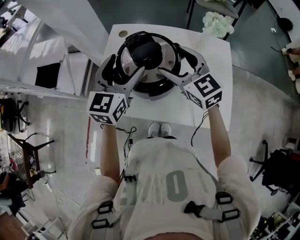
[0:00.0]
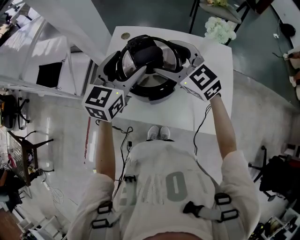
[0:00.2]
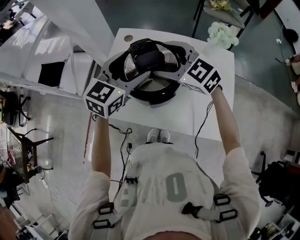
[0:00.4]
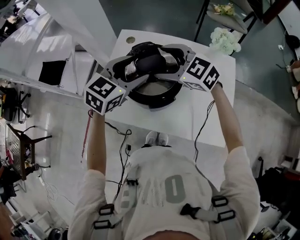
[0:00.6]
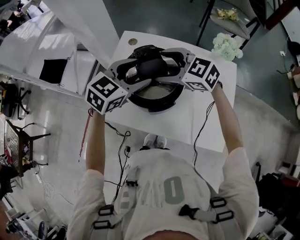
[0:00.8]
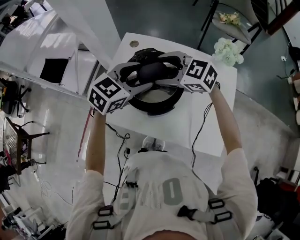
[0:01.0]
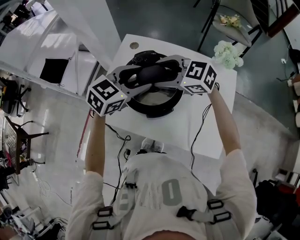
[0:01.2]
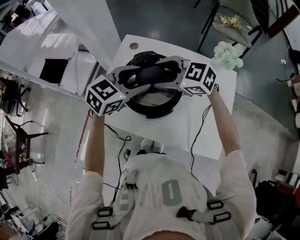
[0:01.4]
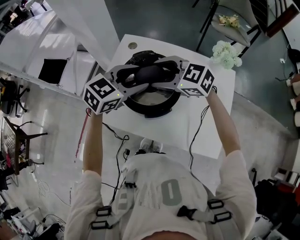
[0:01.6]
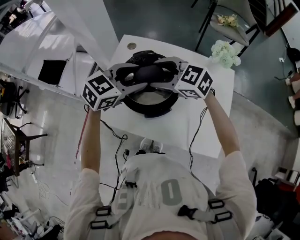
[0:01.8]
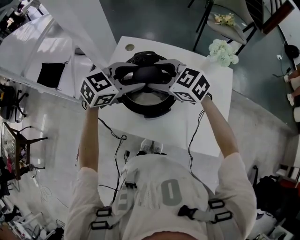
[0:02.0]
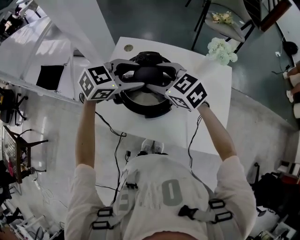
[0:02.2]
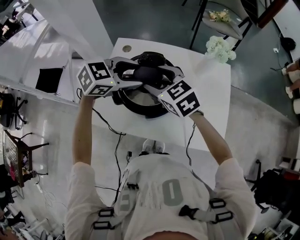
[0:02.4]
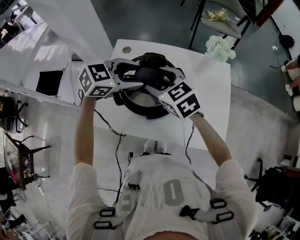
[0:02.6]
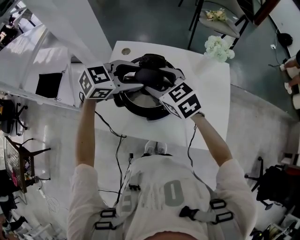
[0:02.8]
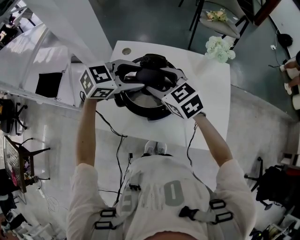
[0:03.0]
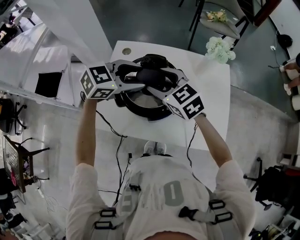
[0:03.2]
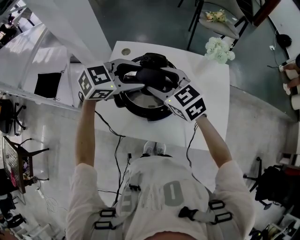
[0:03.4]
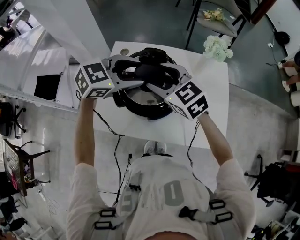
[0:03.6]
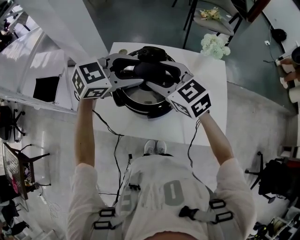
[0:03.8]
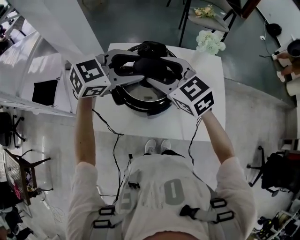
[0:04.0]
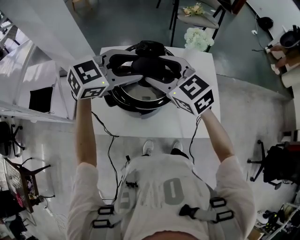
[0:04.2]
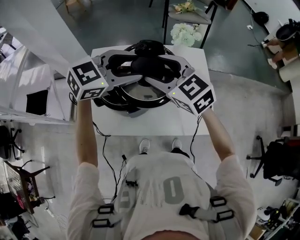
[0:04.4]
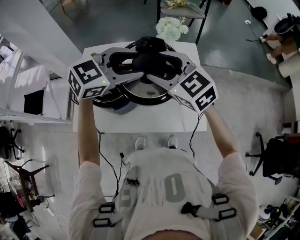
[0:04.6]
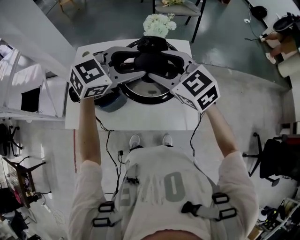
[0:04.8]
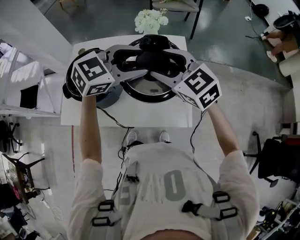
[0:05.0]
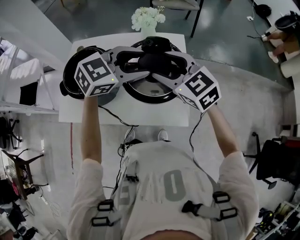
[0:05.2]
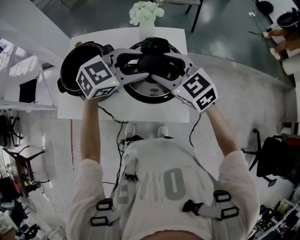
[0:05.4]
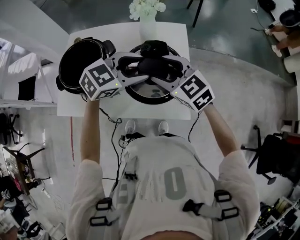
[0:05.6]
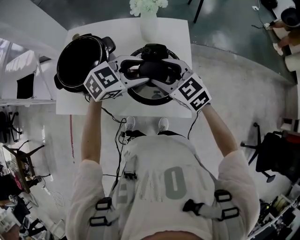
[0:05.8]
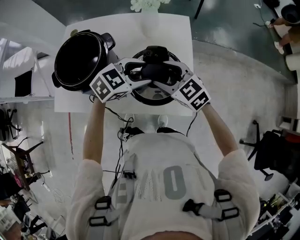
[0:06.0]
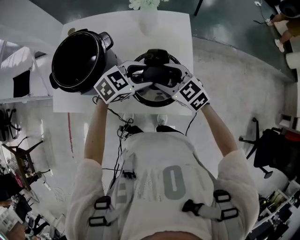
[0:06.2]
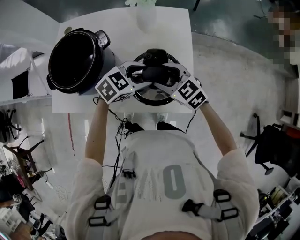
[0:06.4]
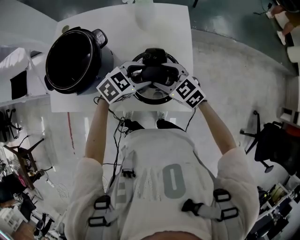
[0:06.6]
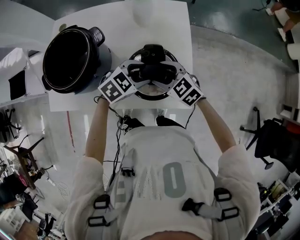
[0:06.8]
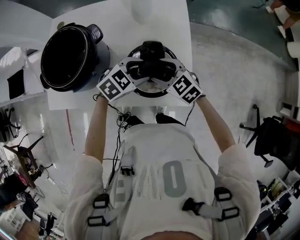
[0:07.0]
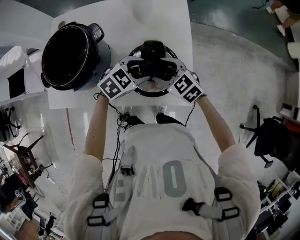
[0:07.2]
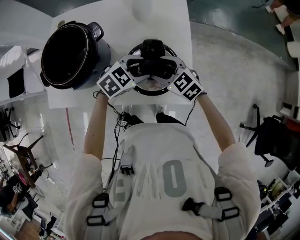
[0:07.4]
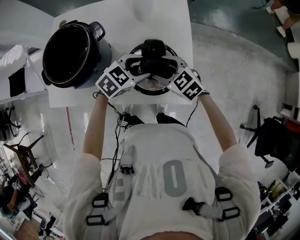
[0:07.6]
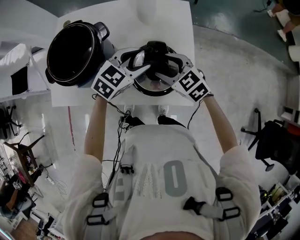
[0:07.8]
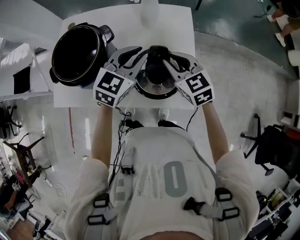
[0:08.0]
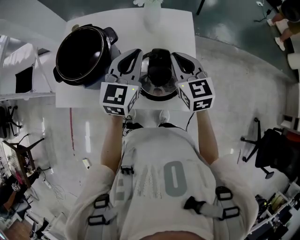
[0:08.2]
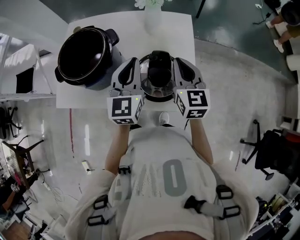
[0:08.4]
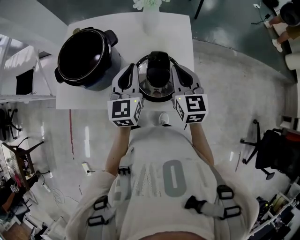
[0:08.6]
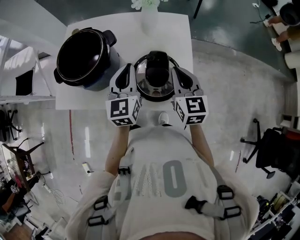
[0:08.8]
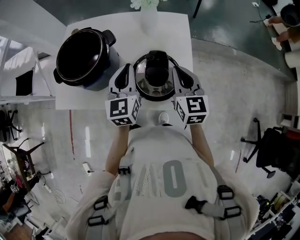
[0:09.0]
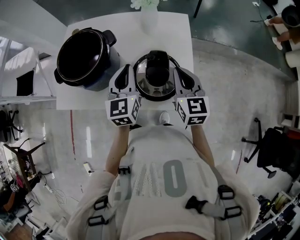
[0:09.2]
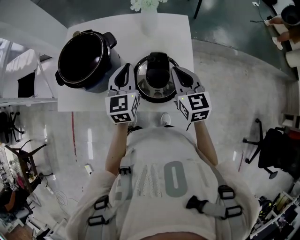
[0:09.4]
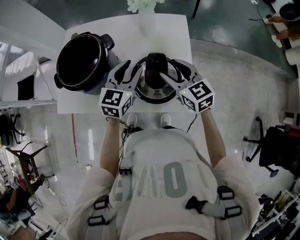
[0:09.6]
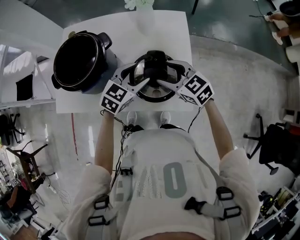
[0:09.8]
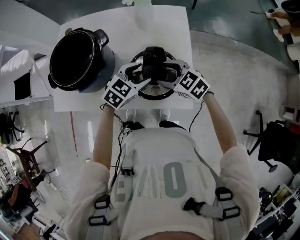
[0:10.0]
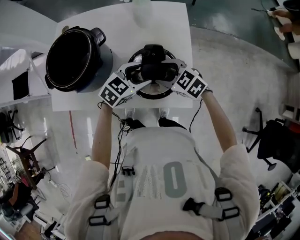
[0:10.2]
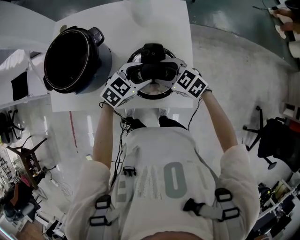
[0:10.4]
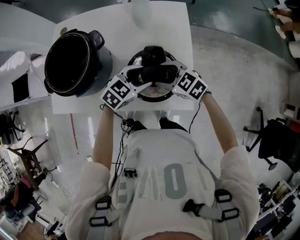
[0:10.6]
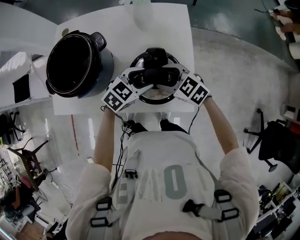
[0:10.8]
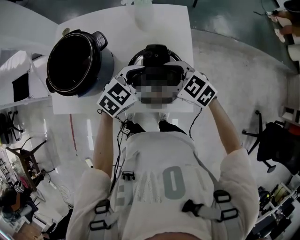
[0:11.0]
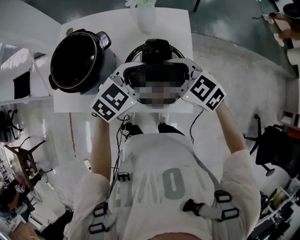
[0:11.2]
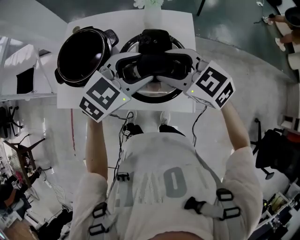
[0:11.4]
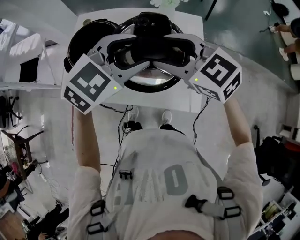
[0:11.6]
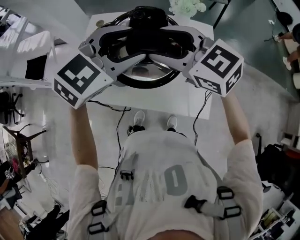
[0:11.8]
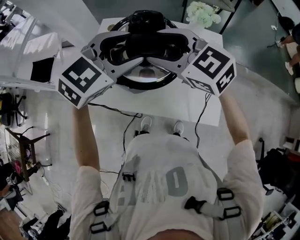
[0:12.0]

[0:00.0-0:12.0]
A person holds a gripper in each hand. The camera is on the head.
0:00.0 to 0:01.6: The left gripper moves some 5 cm, changes its angle by approximately 30 degrees, and closes up; the right gripper moves some 5 cm, and rotates some 40 degrees.
0:01.6 to 0:03.0: The left gripper swivels roughly 20 degrees. Meanwhile the right gripper swivels approximately 30 degrees.
0:03.0 to 0:04.4: Both grippers move upward and to the right, some 10 cm.
0:04.4 to 0:06.0: Both grippers move to the right and downward, approximately 30 cm.
0:06.0 to 0:07.6: The grippers both shift downward by approximately 10 cm.
0:07.6 to 0:09.0: The left gripper shifts approximately 15 cm upward and to the left, tilts its fingers about 30 degrees upward, and closes its fingers; the right gripper heads upward and to the right, covering roughly 15 cm, turns by roughly 40 degrees, and closes.
0:09.0 to 0:10.4: Both grippers travel together downward, roughly 15 cm. The right gripper turns by some 50 degrees, and opens, while the left gripper changes its angle by about 60 degrees, and opens up.
0:10.4 to 0:12.0: The two grippers go approximately 30 cm upward. The right gripper rotates about 20 degrees. The left gripper turns by some 20 degrees.

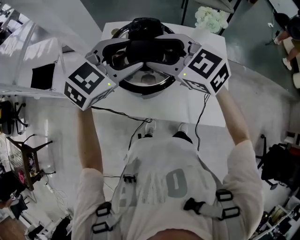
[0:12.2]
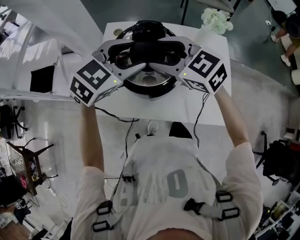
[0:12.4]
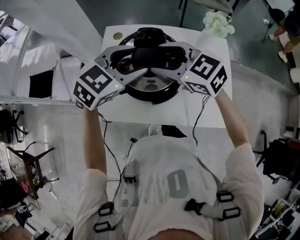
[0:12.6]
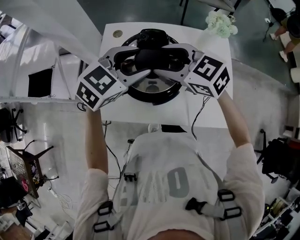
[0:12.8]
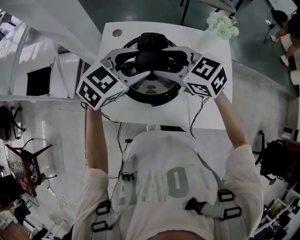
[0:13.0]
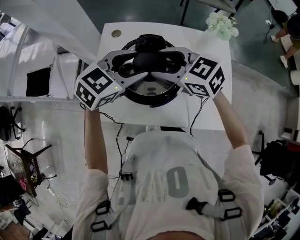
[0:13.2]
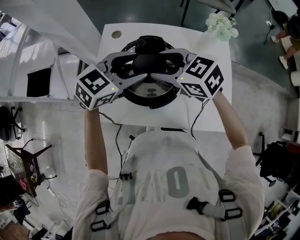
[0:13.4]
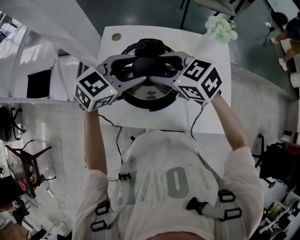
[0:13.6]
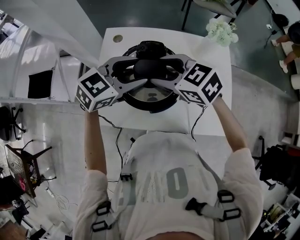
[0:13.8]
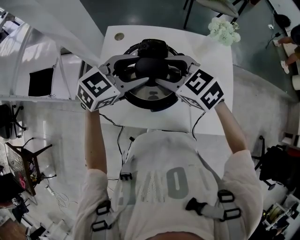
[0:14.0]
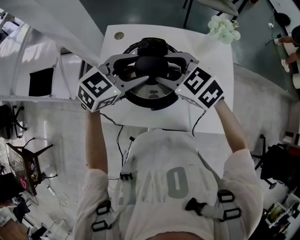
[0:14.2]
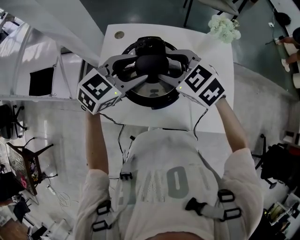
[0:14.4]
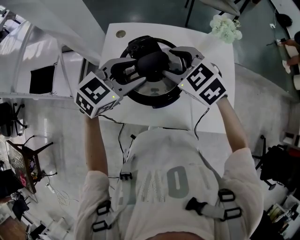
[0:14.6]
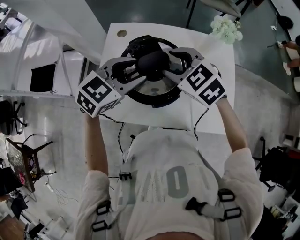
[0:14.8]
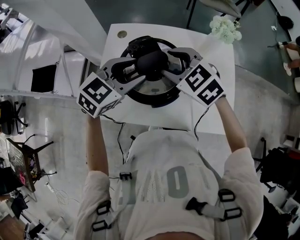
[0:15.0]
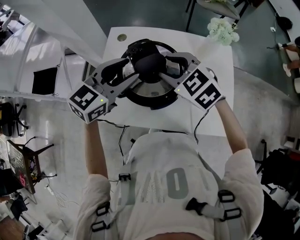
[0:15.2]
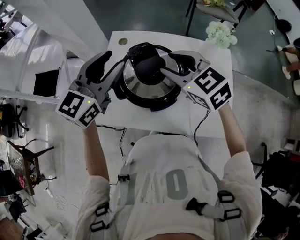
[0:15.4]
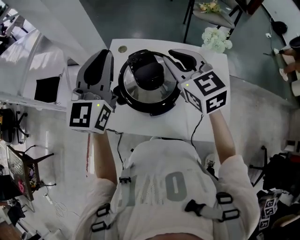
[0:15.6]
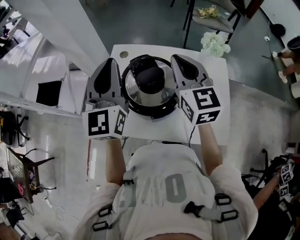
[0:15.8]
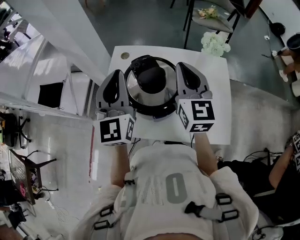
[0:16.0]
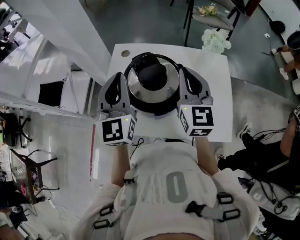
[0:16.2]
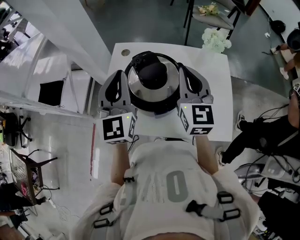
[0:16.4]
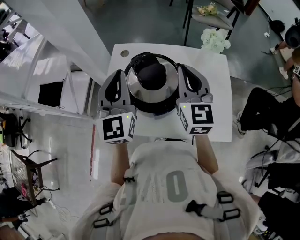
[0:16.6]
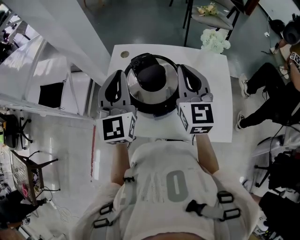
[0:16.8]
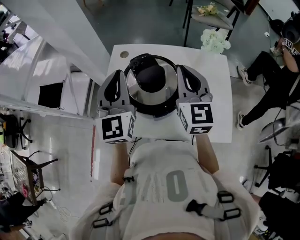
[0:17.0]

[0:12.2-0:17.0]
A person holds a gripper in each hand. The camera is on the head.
0:12.2 to 0:13.8: The left gripper moves to the left, downward and forward, about 15 cm. Meanwhile the right gripper is displaced downward, to the left and forward by about 10 cm.
0:13.8 to 0:15.4: The left gripper travels upward and to the left by roughly 15 cm, and swivels approximately 40 degrees. Meanwhile the right gripper changes place by roughly 5 cm.
0:15.4 to 0:17.0: The left gripper changes its angle by approximately 30 degrees, and closes its fingers; the right gripper travels to the right by about 5 cm, rotates roughly 40 degrees, and closes its fingers.

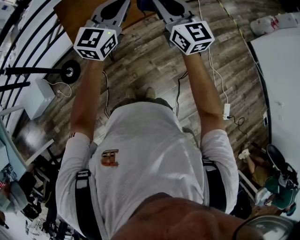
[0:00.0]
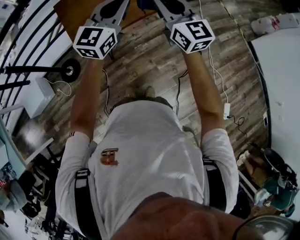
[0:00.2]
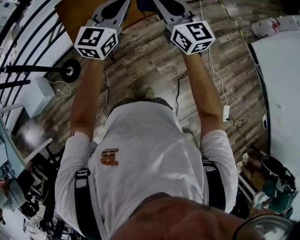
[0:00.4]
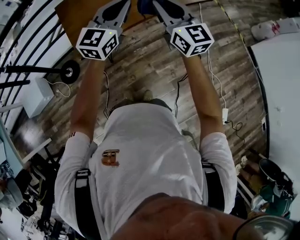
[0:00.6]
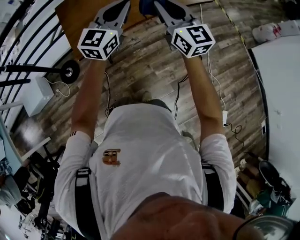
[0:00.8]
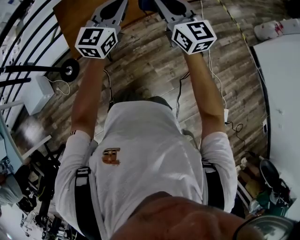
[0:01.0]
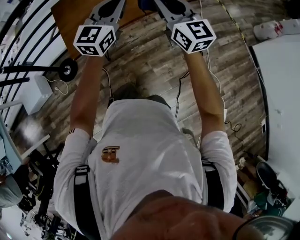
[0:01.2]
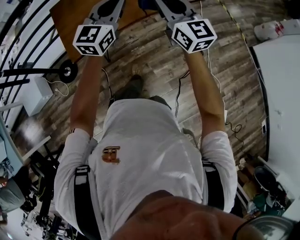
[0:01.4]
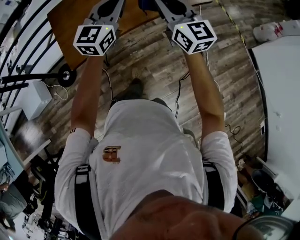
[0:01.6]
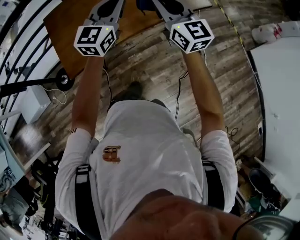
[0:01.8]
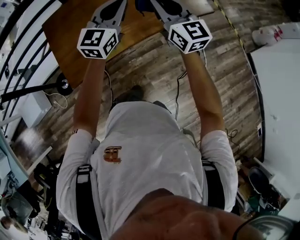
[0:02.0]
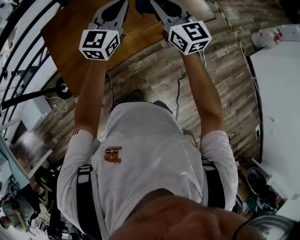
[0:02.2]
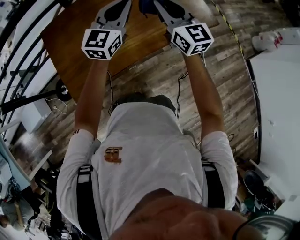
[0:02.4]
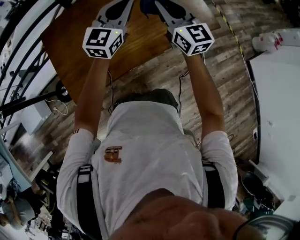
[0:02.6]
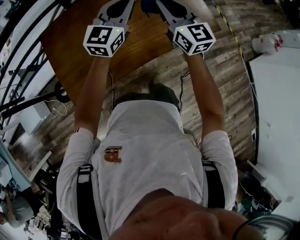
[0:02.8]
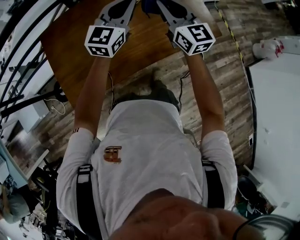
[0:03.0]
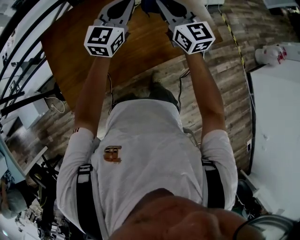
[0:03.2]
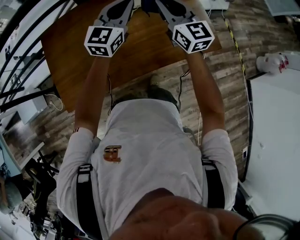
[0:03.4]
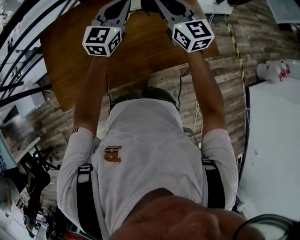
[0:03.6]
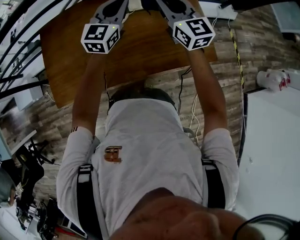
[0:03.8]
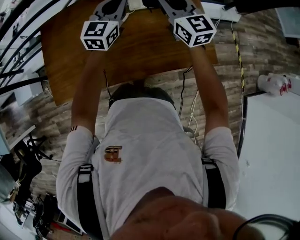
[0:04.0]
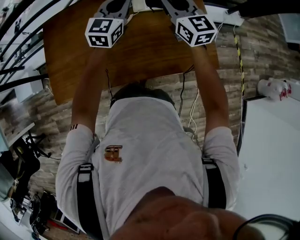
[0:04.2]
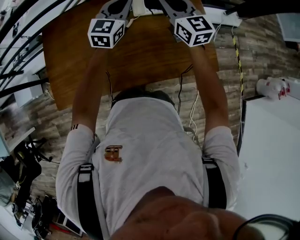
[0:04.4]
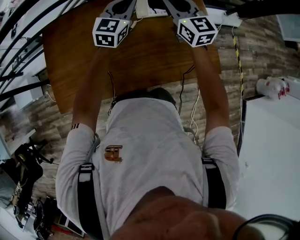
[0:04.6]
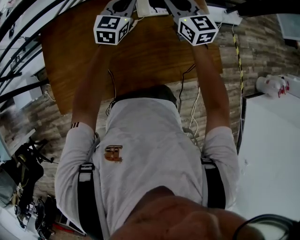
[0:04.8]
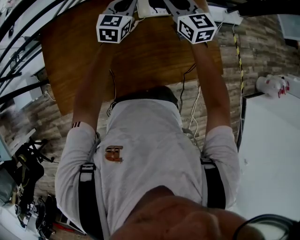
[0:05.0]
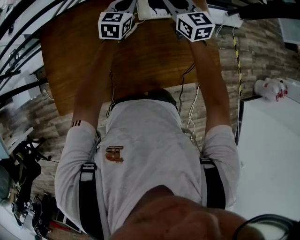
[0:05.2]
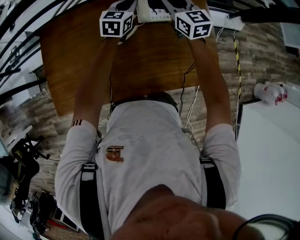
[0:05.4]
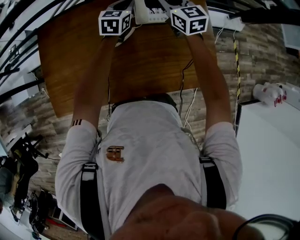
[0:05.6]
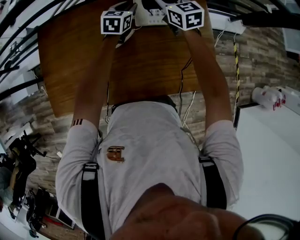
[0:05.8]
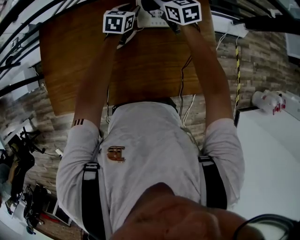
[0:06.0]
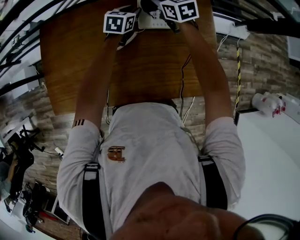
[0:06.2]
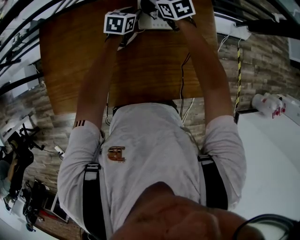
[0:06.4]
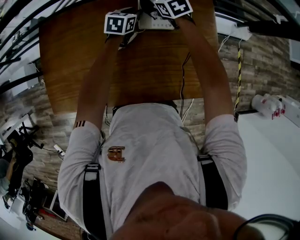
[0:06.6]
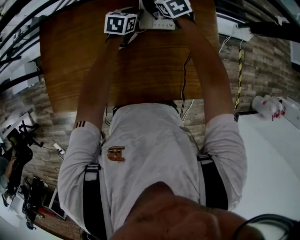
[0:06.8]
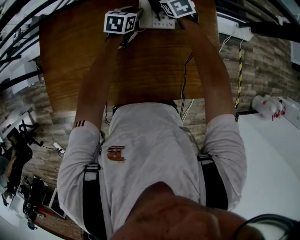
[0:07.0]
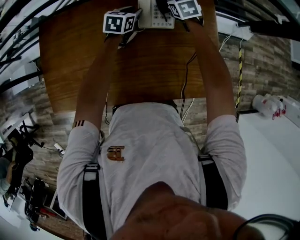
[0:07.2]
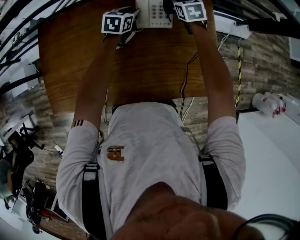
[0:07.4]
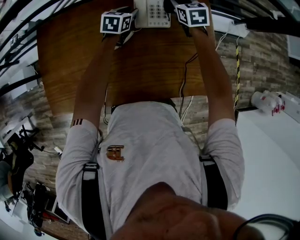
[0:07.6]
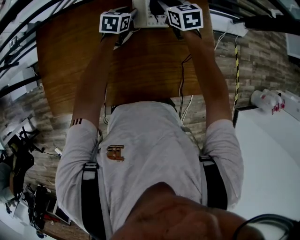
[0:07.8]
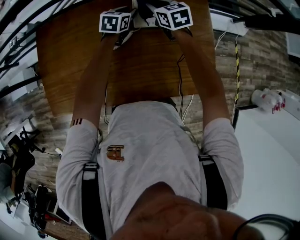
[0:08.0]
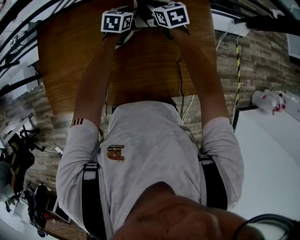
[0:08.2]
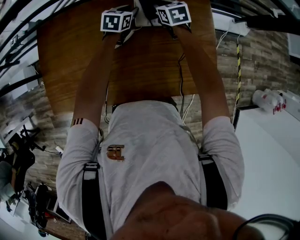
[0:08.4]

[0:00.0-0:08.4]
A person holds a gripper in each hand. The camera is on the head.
0:00.0 to 0:01.4: Both grippers travel together to the right and forward, roughly 10 cm.
0:01.4 to 0:02.8: The two grippers go approximately 35 cm forward.
0:02.8 to 0:04.2: Both grippers travel together forward and to the right, some 25 cm. The left gripper swivels approximately 20 degrees.
0:04.2 to 0:05.6: Both grippers travel together forward and downward, some 20 cm. The left gripper turns by some 20 degrees.
0:05.6 to 0:07.0: The right gripper heads downward and forward, covering roughly 15 cm, and rotates about 30 degrees. The left gripper moves downward, approximately 10 cm.
0:07.0 to 0:08.4: The right gripper travels to the right and back again, some 5 cm each way.
